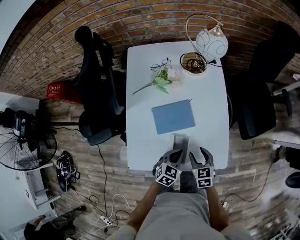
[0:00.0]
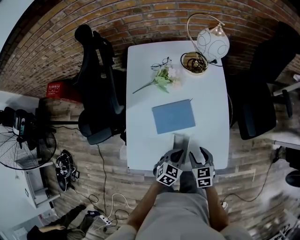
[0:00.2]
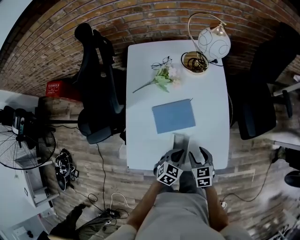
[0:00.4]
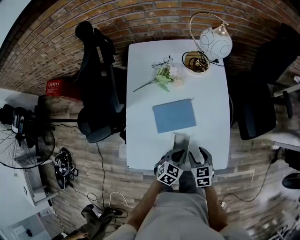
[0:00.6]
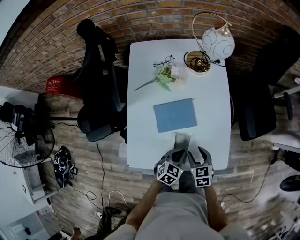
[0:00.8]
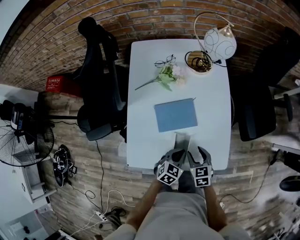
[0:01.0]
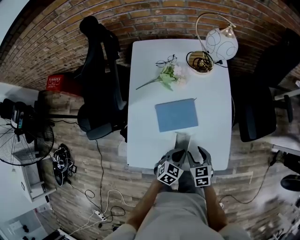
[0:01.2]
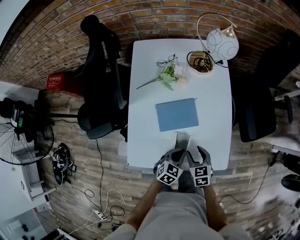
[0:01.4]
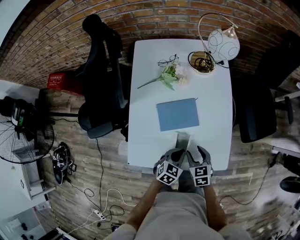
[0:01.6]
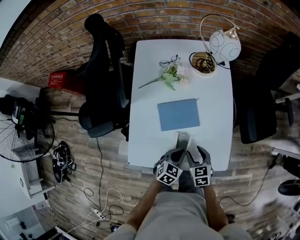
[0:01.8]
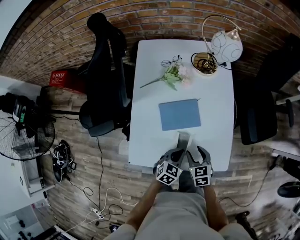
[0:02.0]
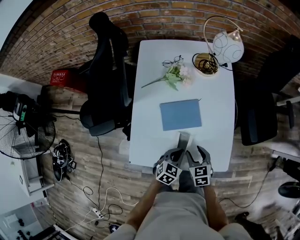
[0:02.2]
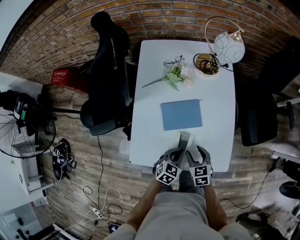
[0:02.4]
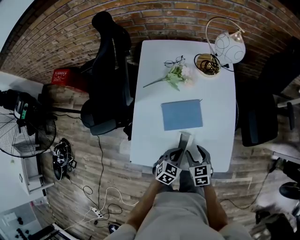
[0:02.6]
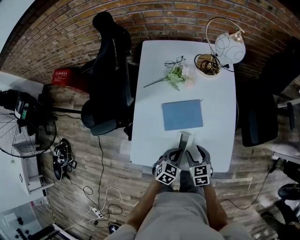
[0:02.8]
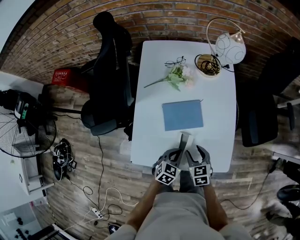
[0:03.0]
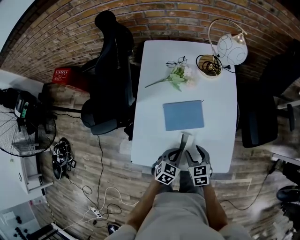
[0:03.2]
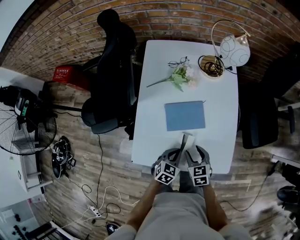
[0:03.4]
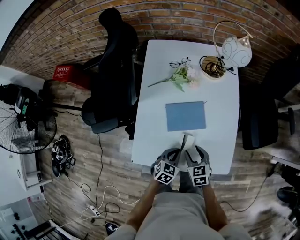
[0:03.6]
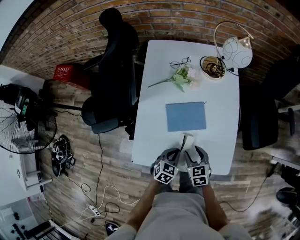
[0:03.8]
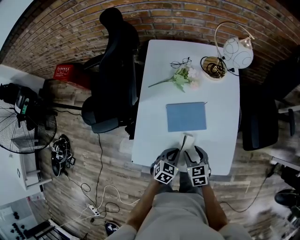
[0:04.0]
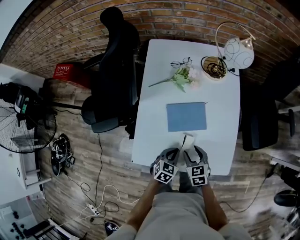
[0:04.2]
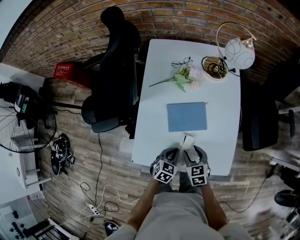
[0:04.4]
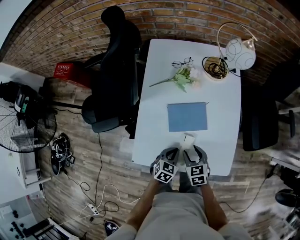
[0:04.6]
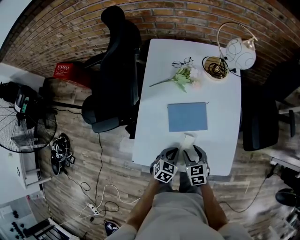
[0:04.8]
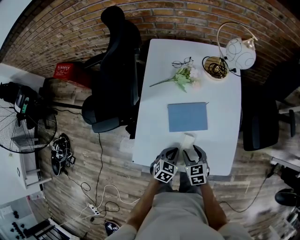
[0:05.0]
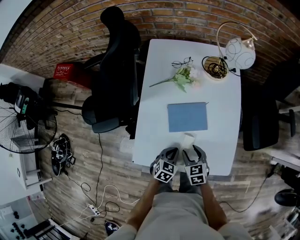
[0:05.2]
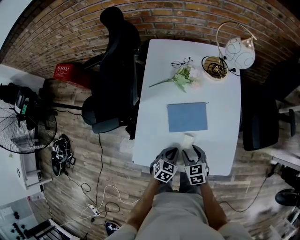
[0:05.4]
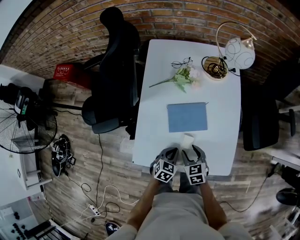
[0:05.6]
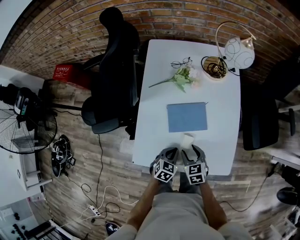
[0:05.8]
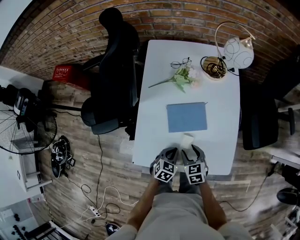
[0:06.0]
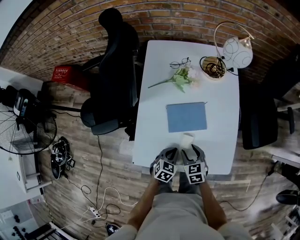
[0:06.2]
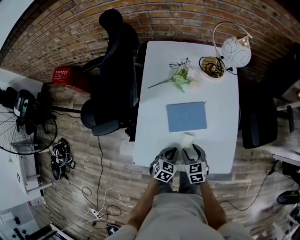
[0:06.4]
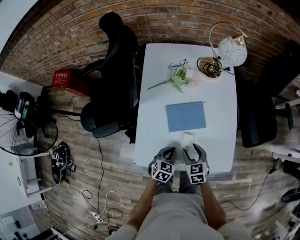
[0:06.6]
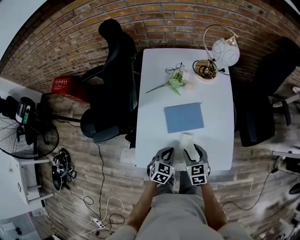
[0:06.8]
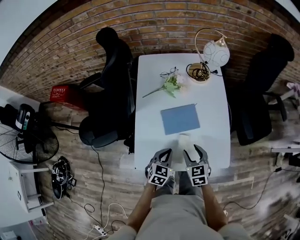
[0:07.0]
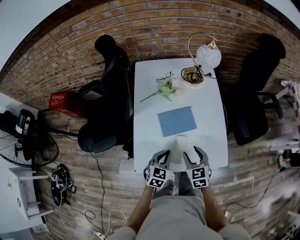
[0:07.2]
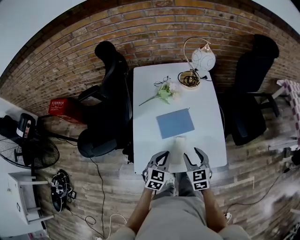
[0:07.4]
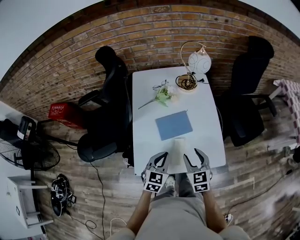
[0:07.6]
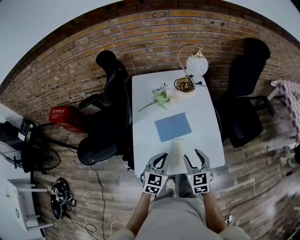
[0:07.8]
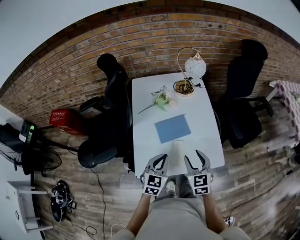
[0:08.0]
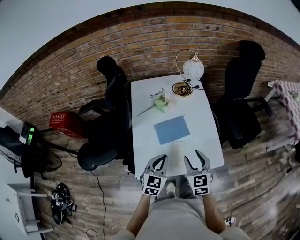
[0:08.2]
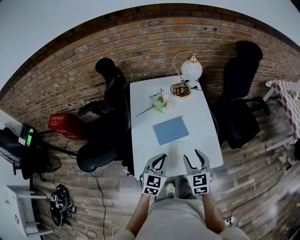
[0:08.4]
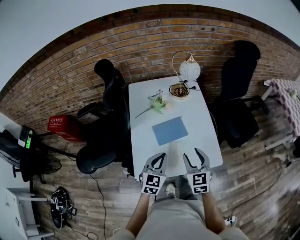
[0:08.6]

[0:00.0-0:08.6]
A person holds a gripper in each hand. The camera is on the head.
0:00.0 to 0:02.8: The grippers make only small movements.
0:02.8 to 0:05.8: The grippers move only a little.
0:05.8 to 0:07.2: Both grippers travel together upward, roughly 10 cm.
0:07.2 to 0:08.6: The grippers both shift upward by about 10 cm.

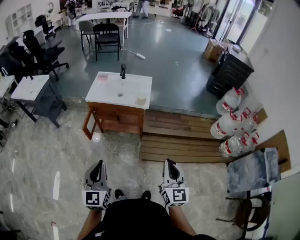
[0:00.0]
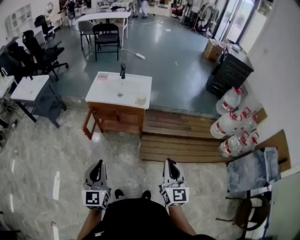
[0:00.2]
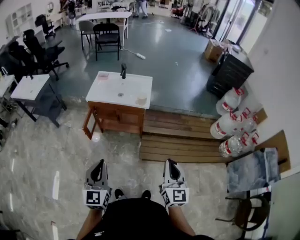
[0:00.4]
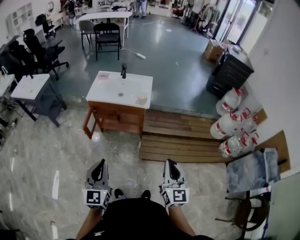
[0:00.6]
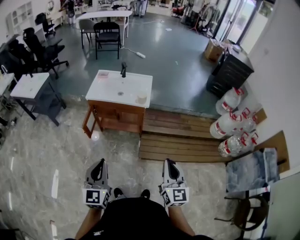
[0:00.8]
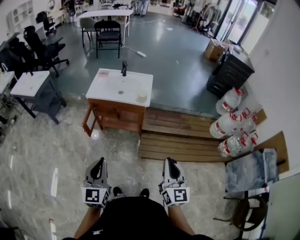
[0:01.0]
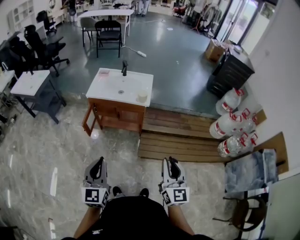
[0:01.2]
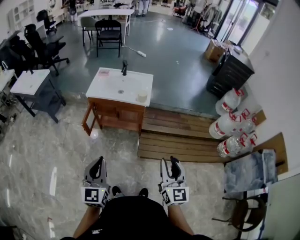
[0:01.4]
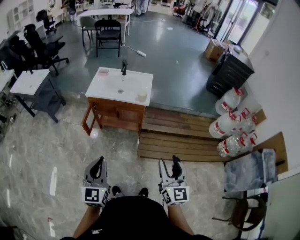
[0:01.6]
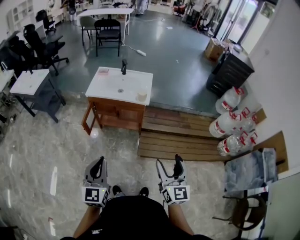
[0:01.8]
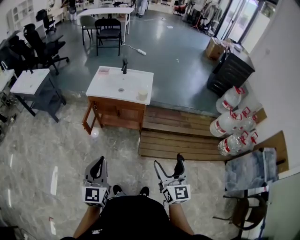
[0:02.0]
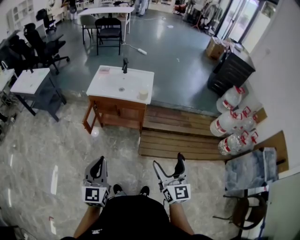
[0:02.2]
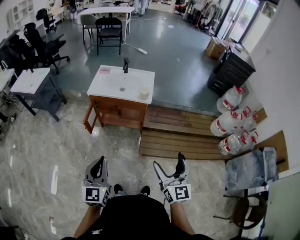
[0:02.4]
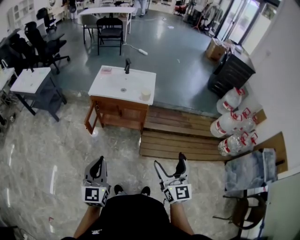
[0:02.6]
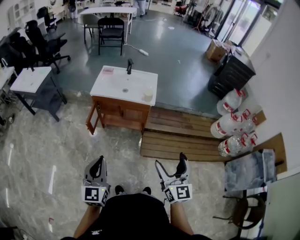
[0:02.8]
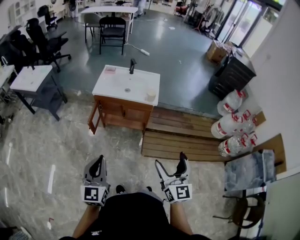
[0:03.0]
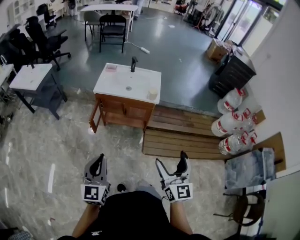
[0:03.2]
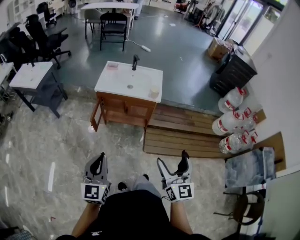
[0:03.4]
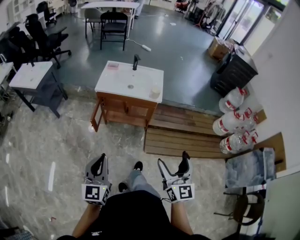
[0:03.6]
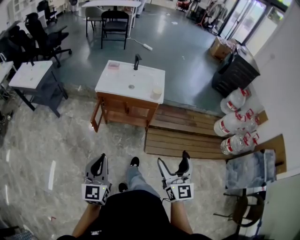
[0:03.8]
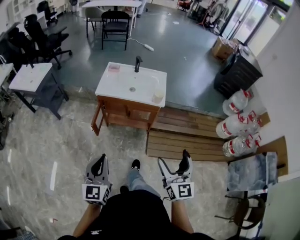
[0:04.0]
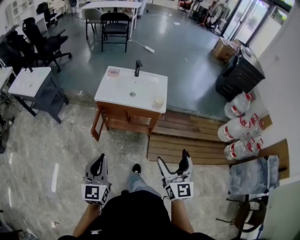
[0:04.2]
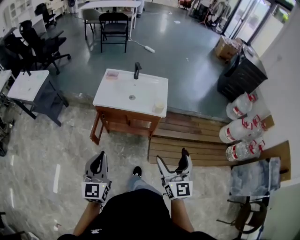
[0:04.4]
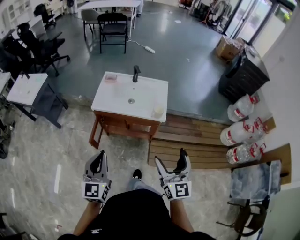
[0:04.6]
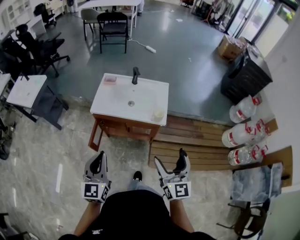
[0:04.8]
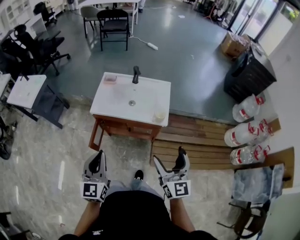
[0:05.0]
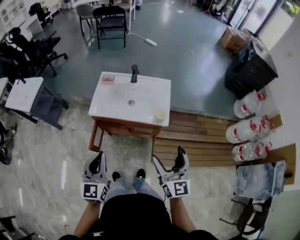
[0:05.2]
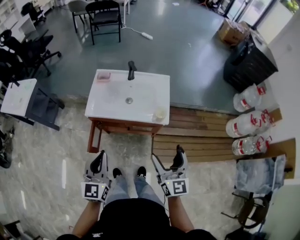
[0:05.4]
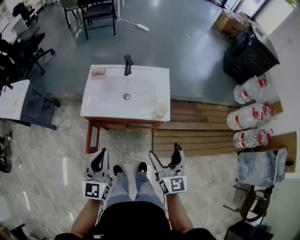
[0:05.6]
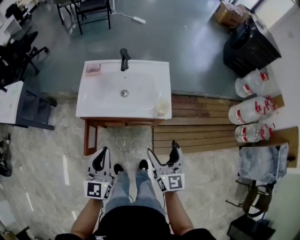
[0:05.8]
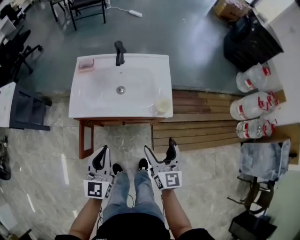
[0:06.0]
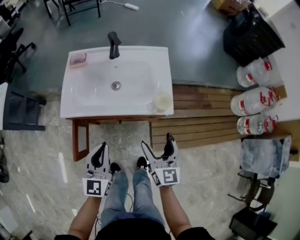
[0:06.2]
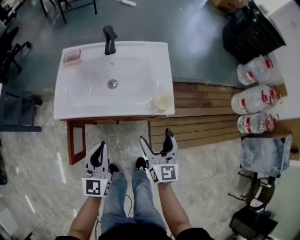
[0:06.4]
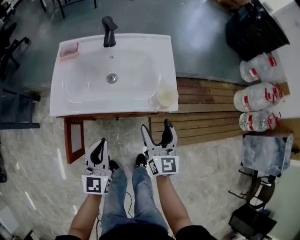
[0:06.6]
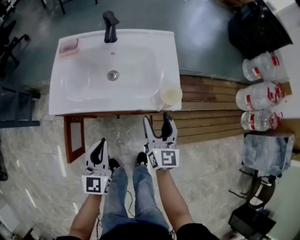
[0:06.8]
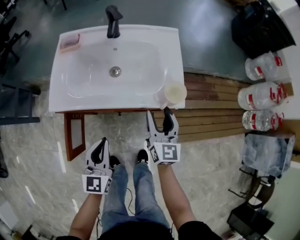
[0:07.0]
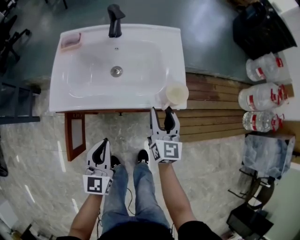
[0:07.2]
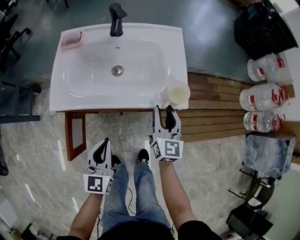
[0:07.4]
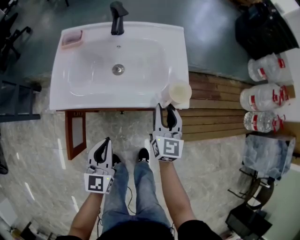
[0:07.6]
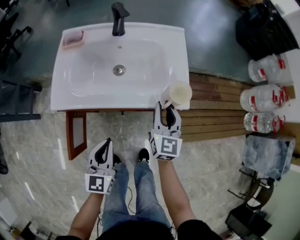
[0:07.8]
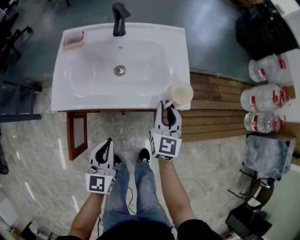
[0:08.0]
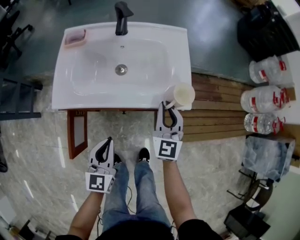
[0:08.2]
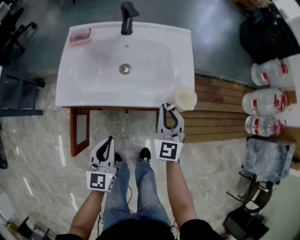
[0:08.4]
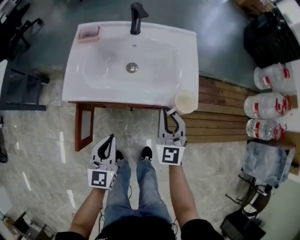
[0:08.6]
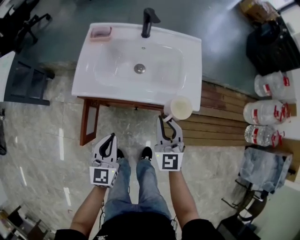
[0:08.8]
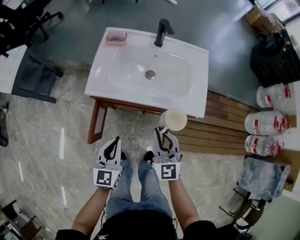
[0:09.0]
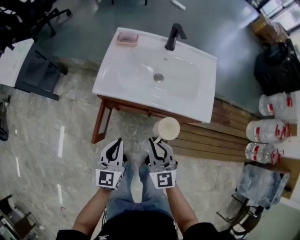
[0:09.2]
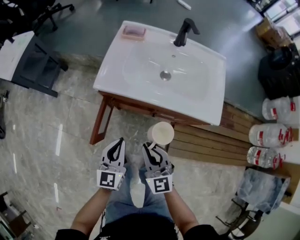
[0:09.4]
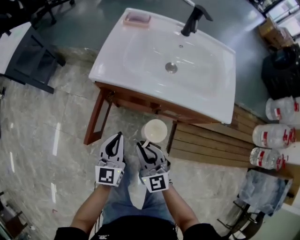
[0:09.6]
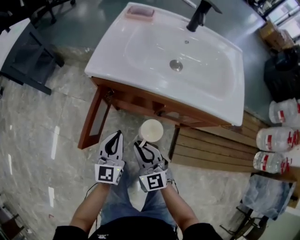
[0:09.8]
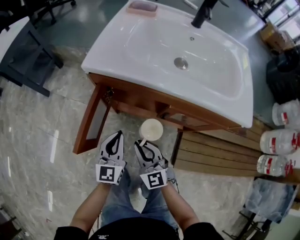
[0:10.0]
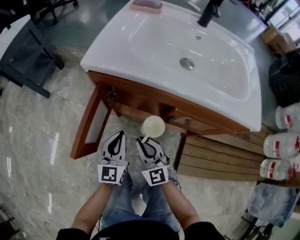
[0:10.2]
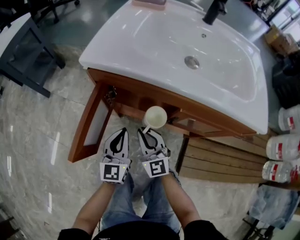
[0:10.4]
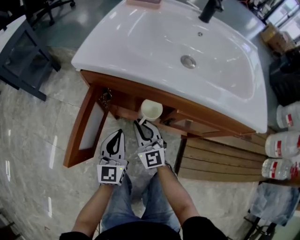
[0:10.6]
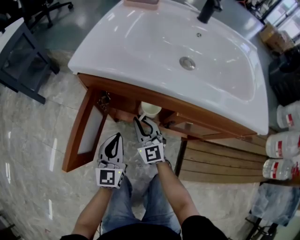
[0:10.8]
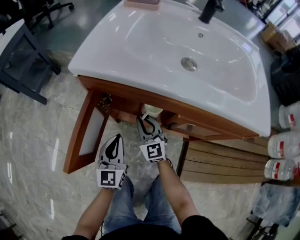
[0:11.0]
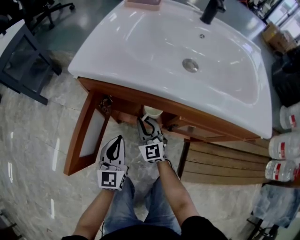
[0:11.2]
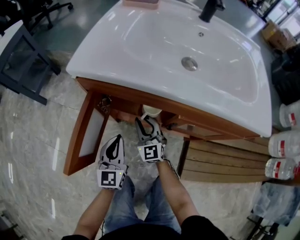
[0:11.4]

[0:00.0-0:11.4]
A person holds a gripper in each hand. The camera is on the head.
0:00.0 to 0:01.4: The grippers stay close to where they were, moving slightly.
0:01.4 to 0:02.8: The right gripper ends up roughly 5 cm from where it was, and opens; the left gripper heads to the left, covering approximately 5 cm.
0:02.8 to 0:04.2: Both grippers travel together forward and to the left, approximately 15 cm.
0:04.2 to 0:05.6: The right gripper goes about 25 cm forward and downward. The left gripper heads forward, covering about 25 cm.
0:05.6 to 0:07.2: The right gripper shifts some 30 cm downward and forward, and closes up, while the left gripper travels downward by roughly 25 cm.
0:07.2 to 0:08.6: The right gripper changes place by approximately 5 cm, rotates some 30 degrees, and closes its fingers.
0:08.6 to 0:10.0: The two grippers go roughly 30 cm downward and to the left. The right gripper rotates roughly 30 degrees.
0:10.0 to 0:11.4: The left gripper is displaced downward by roughly 5 cm, while the right gripper is displaced forward and downward by roughly 20 cm.

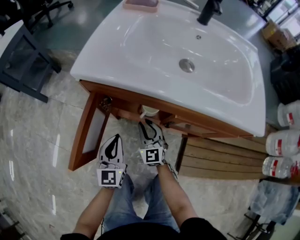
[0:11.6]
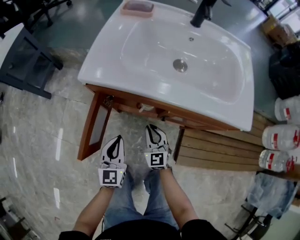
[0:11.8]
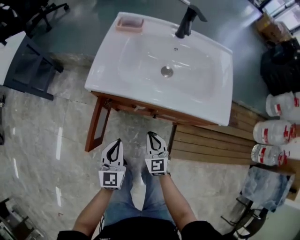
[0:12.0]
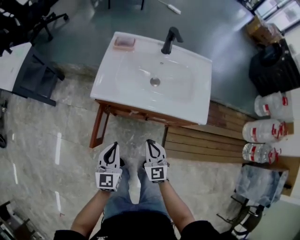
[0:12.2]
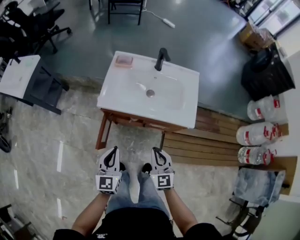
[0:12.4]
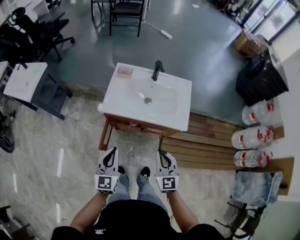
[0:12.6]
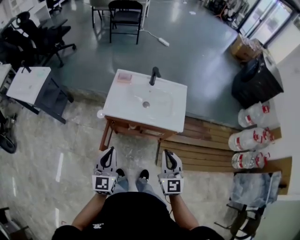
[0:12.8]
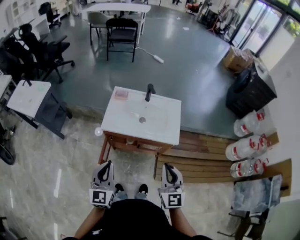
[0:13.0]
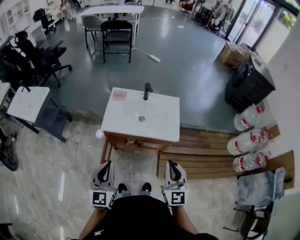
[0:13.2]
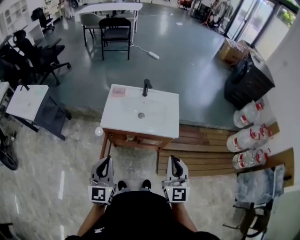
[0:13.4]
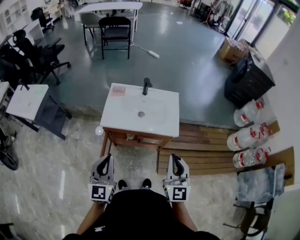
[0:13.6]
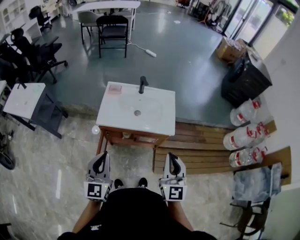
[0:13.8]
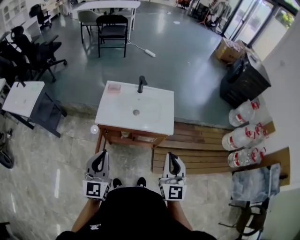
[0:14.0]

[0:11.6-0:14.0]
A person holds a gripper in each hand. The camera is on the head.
0:11.6 to 0:12.8: Both grippers travel together upward, approximately 50 cm.
0:12.8 to 0:14.0: The two grippers go some 10 cm upward.

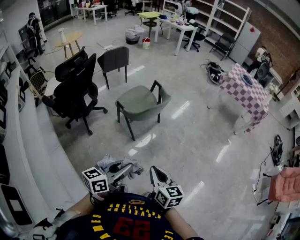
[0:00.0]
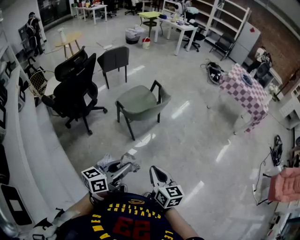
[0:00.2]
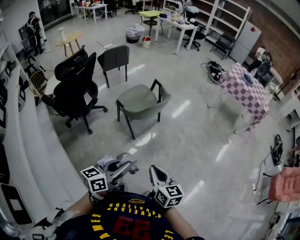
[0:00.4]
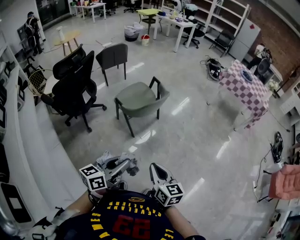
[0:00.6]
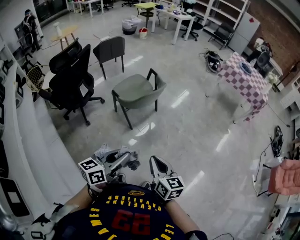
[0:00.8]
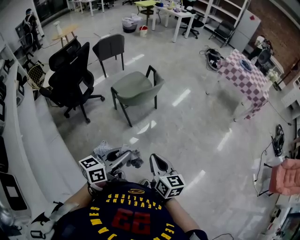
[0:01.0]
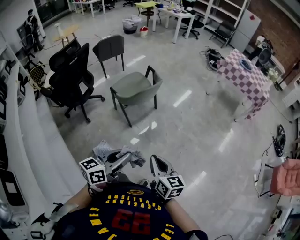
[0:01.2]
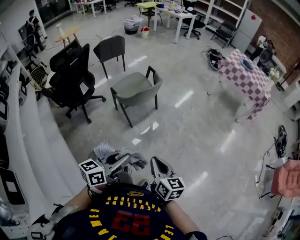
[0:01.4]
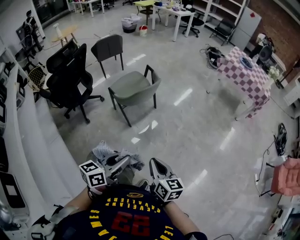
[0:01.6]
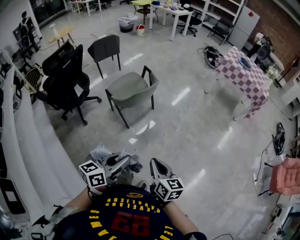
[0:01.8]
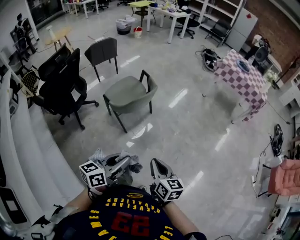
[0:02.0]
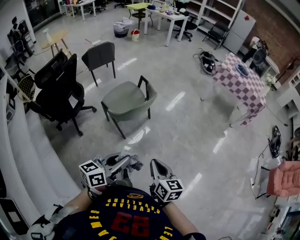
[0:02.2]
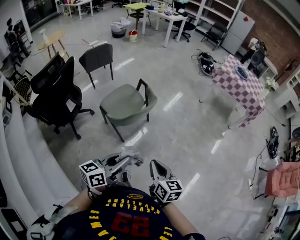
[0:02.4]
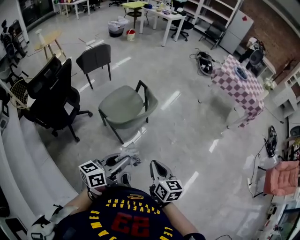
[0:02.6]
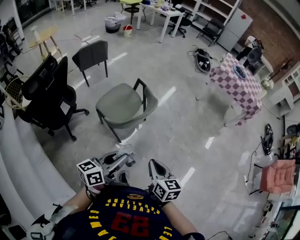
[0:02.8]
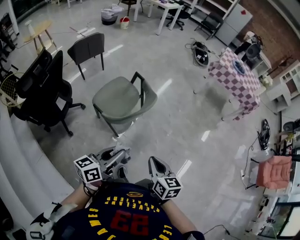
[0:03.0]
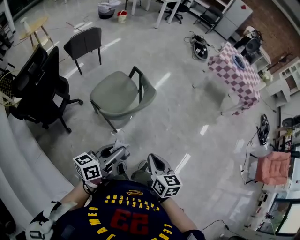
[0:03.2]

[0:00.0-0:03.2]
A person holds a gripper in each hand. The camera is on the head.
0:00.0 to 0:01.6: Both grippers move to the right, about 10 cm.
0:01.6 to 0:03.2: Both grippers travel together forward and to the left, some 30 cm.
